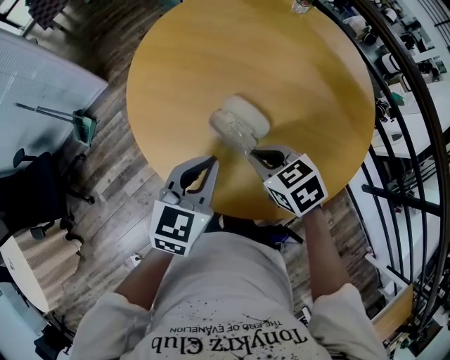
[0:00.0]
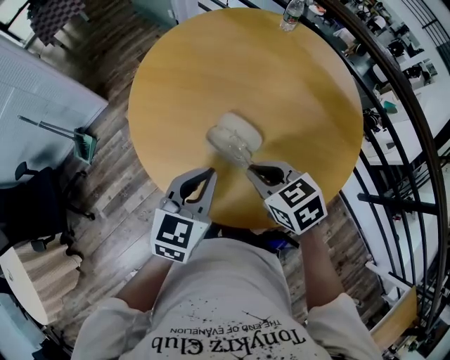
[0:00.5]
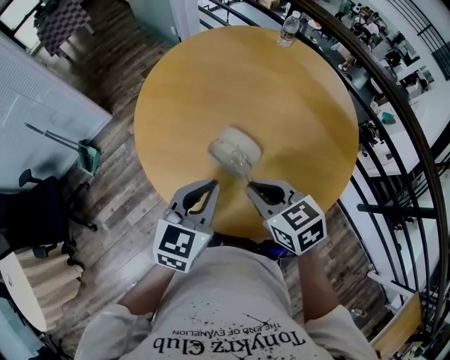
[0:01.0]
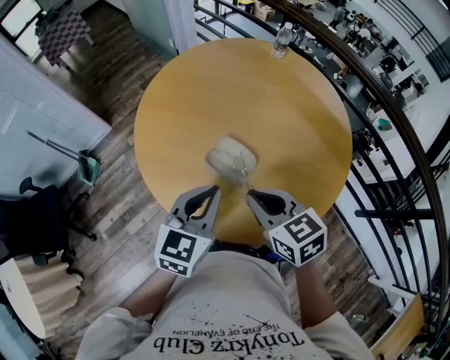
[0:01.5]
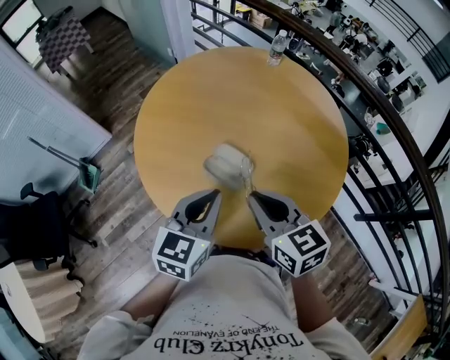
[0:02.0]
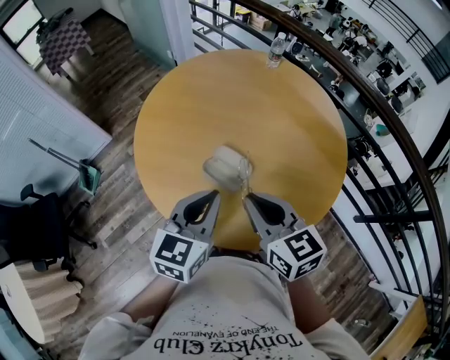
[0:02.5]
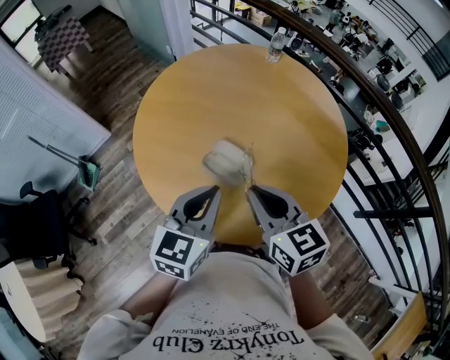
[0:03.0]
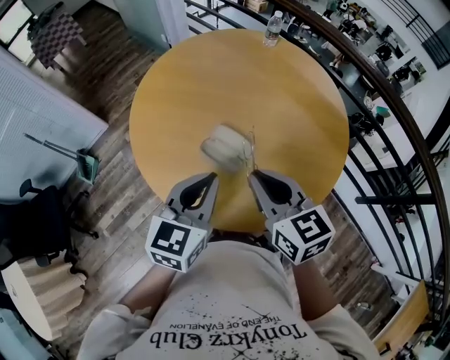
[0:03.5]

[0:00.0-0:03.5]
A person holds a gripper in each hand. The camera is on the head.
0:00.0 to 0:02.0: The right gripper travels upward by about 15 cm, and swivels some 30 degrees, while the left gripper goes some 10 cm upward.
0:02.0 to 0:03.5: Both grippers stay put.

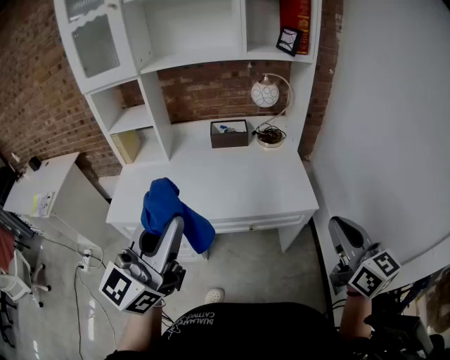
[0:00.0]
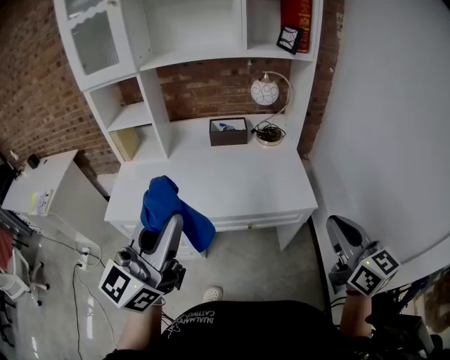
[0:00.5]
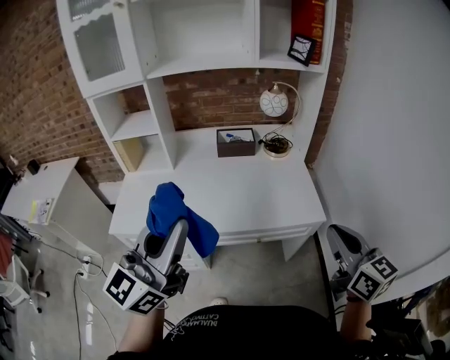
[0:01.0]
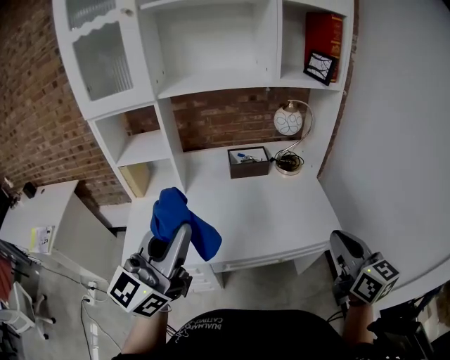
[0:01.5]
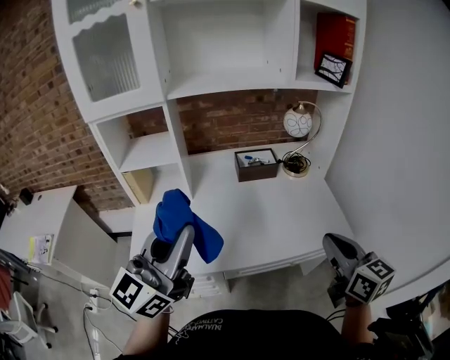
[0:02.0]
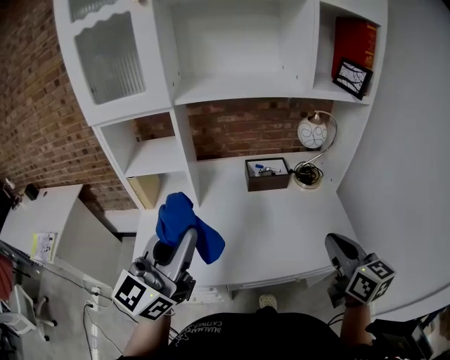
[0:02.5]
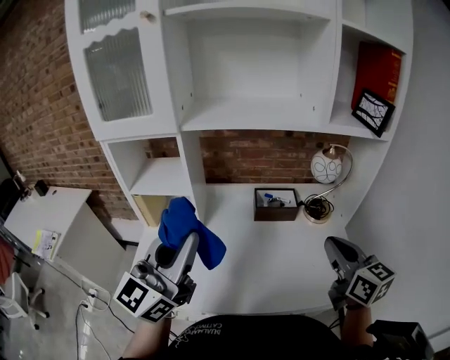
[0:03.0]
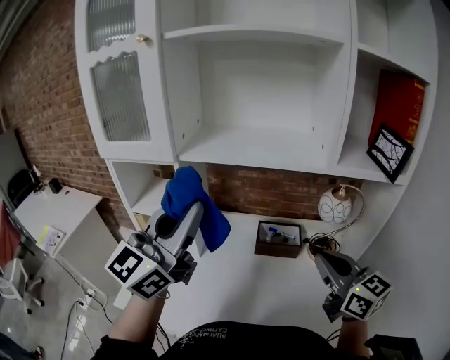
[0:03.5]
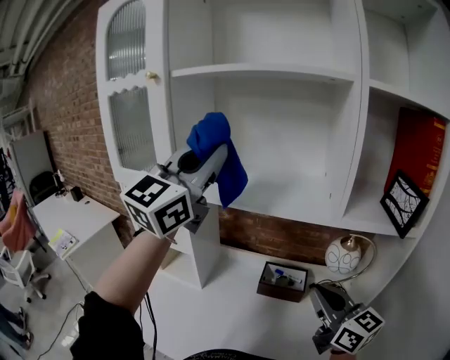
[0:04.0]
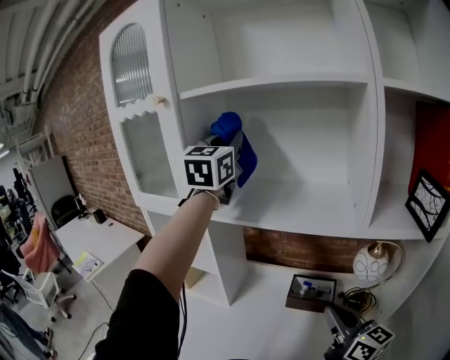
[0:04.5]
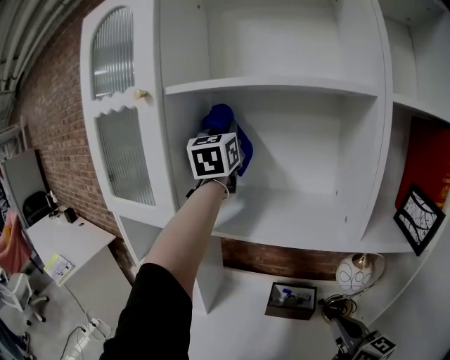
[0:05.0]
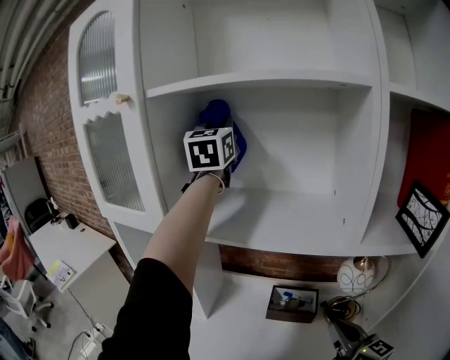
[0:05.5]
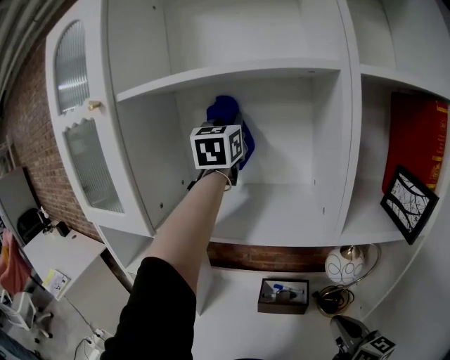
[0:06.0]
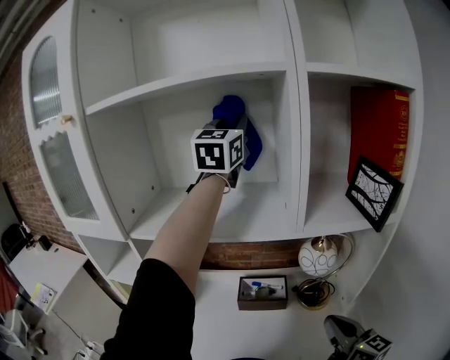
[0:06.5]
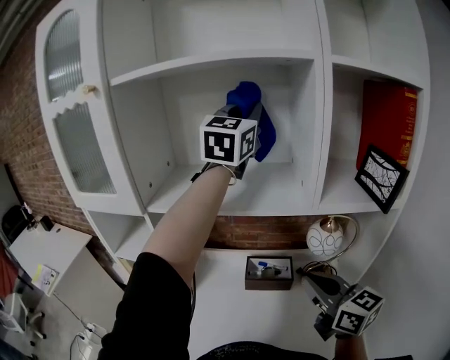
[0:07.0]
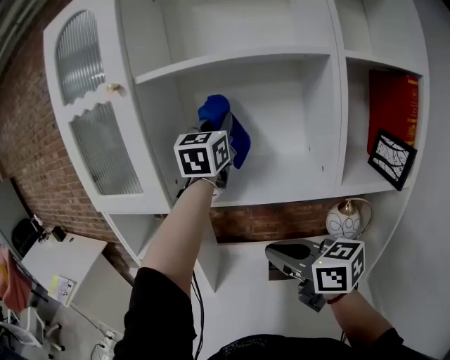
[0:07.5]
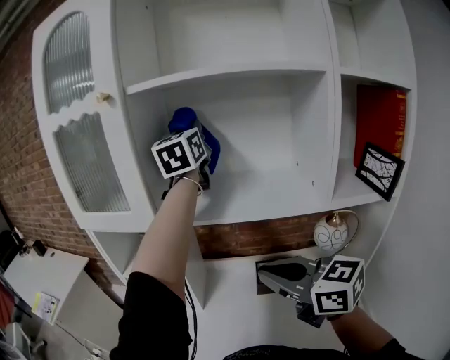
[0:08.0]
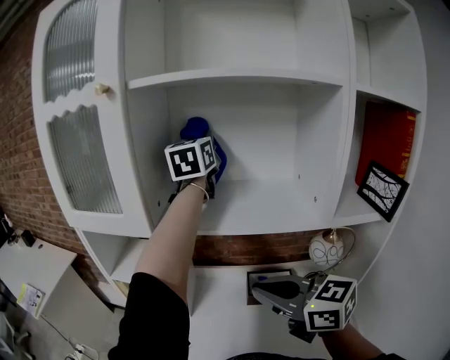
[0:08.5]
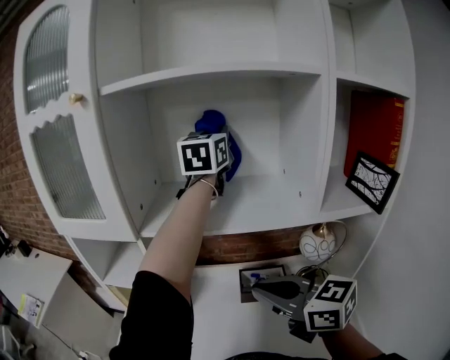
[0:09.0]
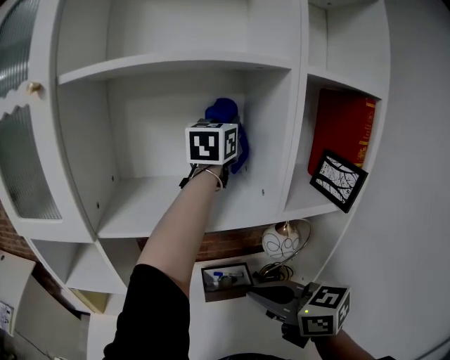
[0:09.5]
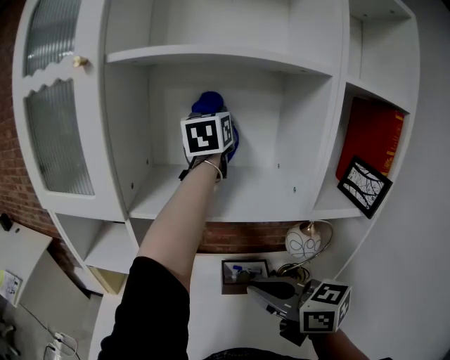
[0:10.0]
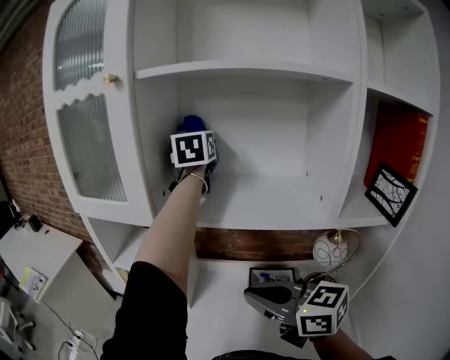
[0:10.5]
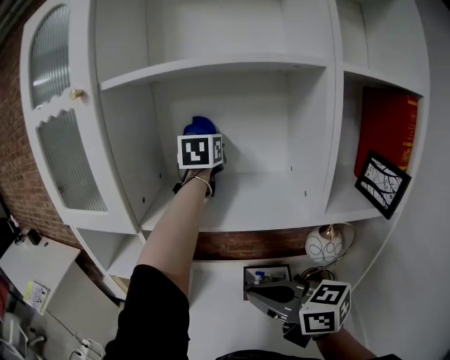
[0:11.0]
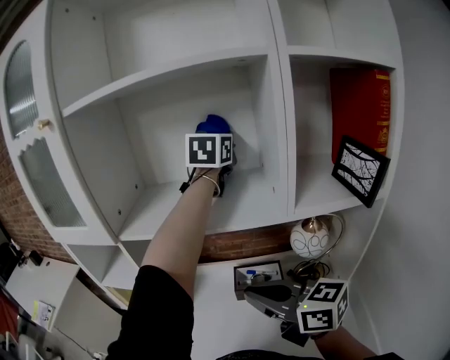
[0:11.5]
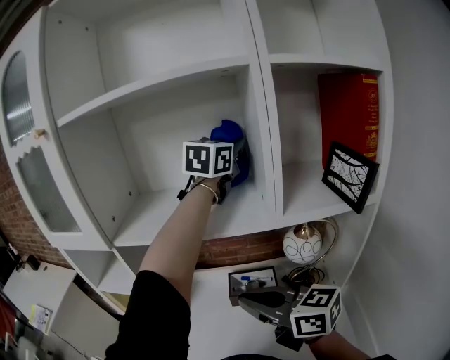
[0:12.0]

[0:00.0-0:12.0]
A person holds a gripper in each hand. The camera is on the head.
0:00.0 to 0:02.0: The two grippers go approximately 25 cm to the left and forward.
0:02.0 to 0:04.0: The right gripper shifts approximately 30 cm forward, and turns by roughly 30 degrees, while the left gripper moves forward and upward, about 40 cm, and swivels some 40 degrees.
0:04.0 to 0:06.0: The left gripper is displaced forward by some 25 cm; the right gripper heads downward and to the right, covering some 10 cm.
0:06.0 to 0:08.0: The left gripper heads to the left, covering some 10 cm. Meanwhile the right gripper is displaced to the left and upward by about 25 cm, and swivels some 30 degrees.
0:08.0 to 0:10.0: The left gripper moves to the right, roughly 10 cm.
0:10.0 to 0:12.0: The left gripper shifts about 15 cm to the right and downward, and turns by roughly 30 degrees.

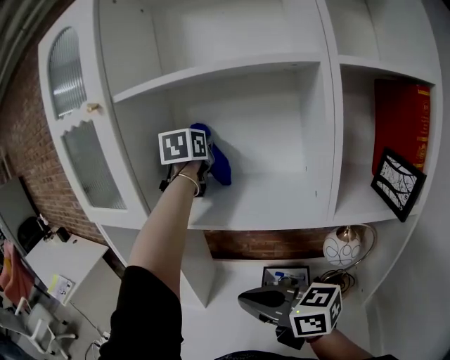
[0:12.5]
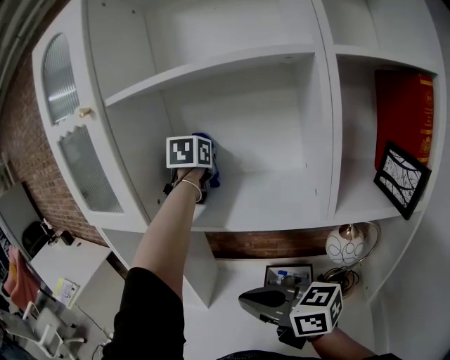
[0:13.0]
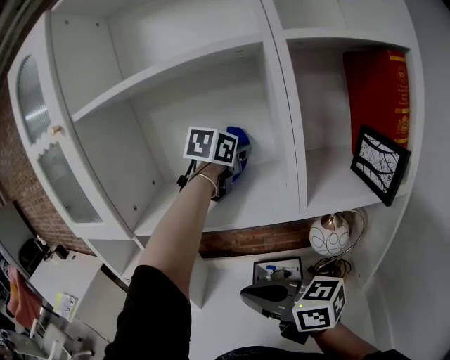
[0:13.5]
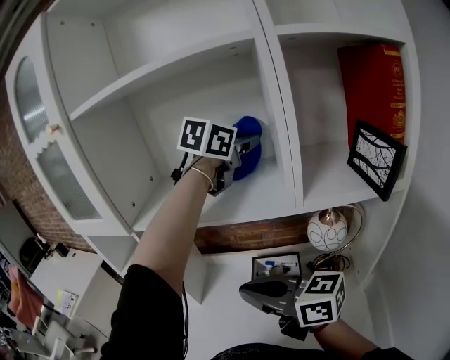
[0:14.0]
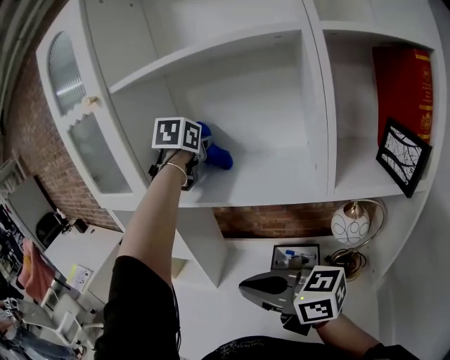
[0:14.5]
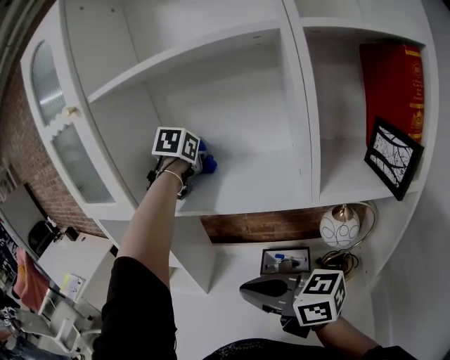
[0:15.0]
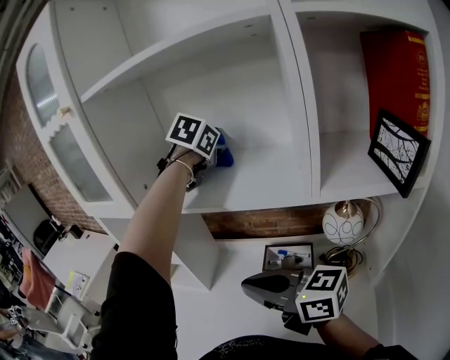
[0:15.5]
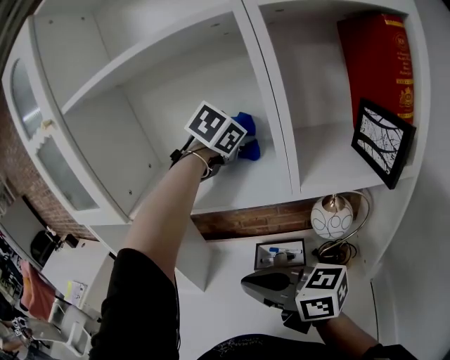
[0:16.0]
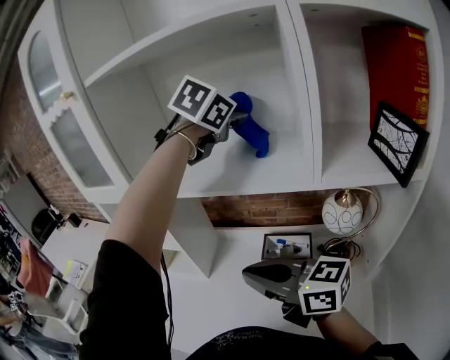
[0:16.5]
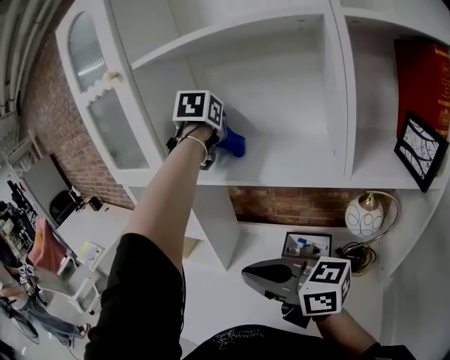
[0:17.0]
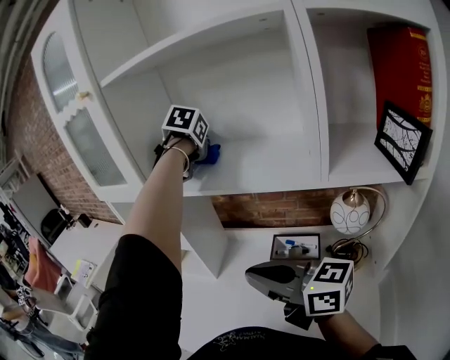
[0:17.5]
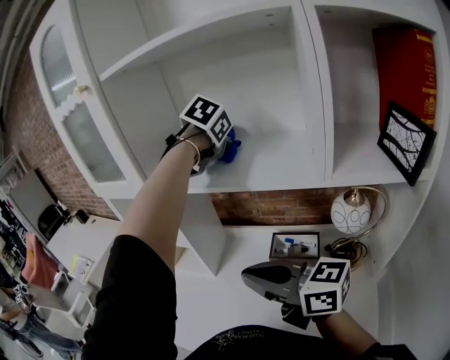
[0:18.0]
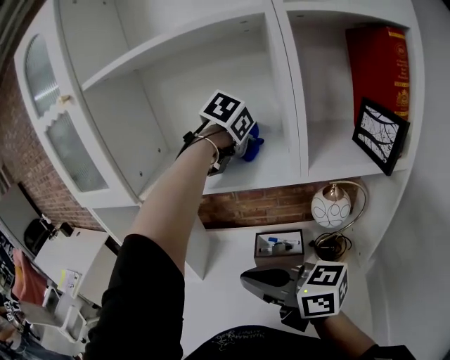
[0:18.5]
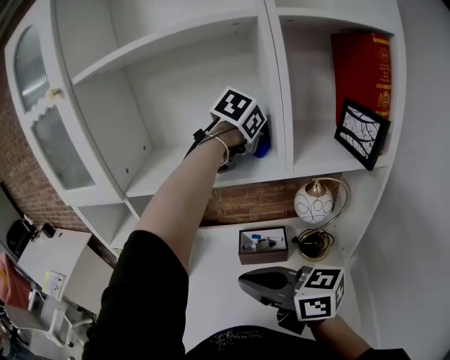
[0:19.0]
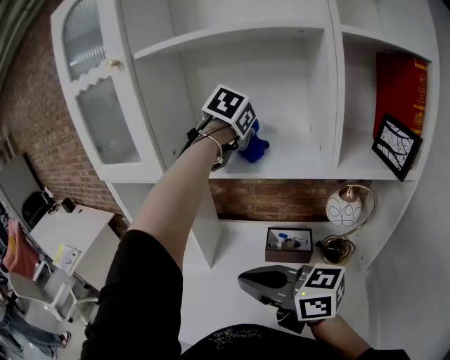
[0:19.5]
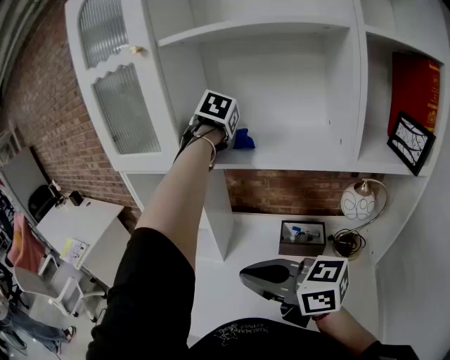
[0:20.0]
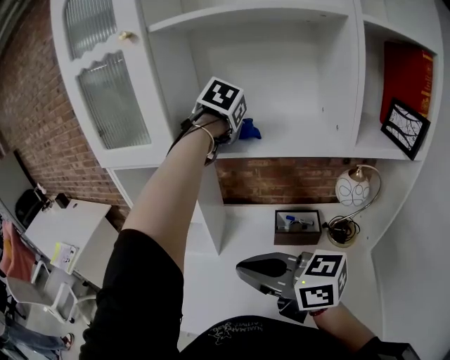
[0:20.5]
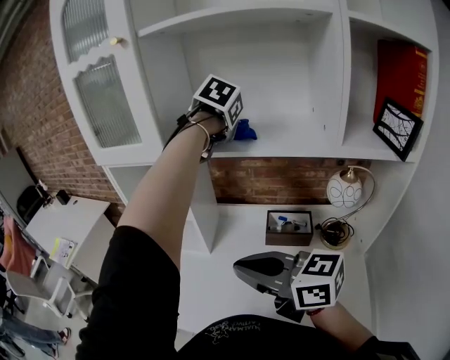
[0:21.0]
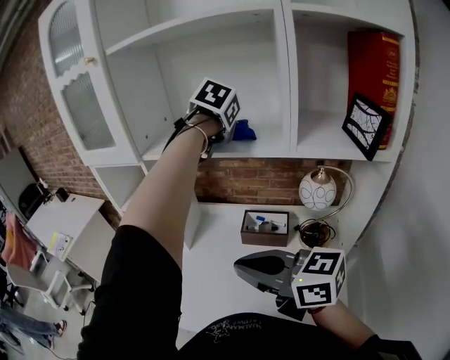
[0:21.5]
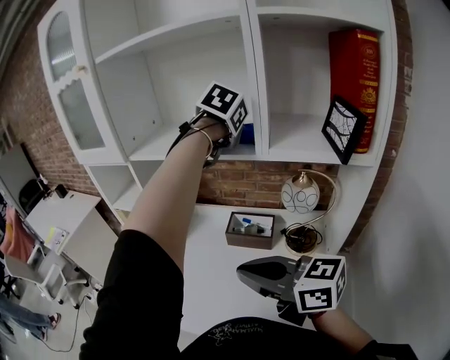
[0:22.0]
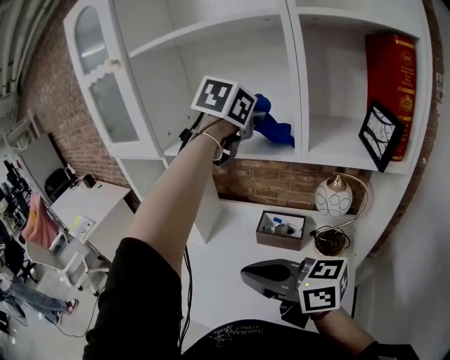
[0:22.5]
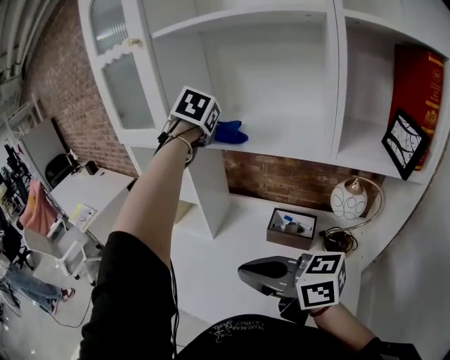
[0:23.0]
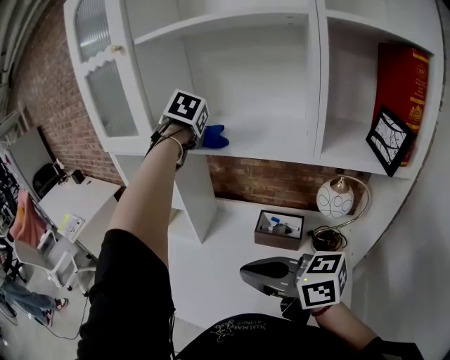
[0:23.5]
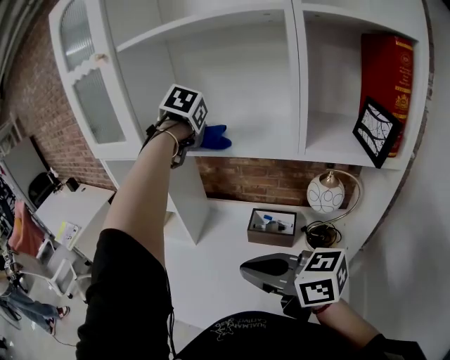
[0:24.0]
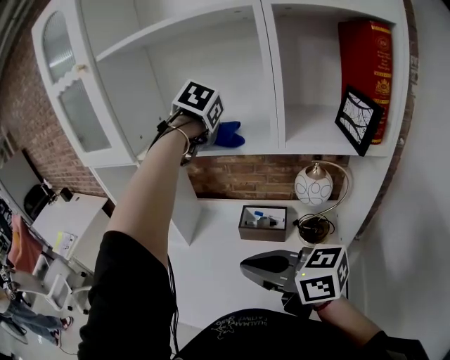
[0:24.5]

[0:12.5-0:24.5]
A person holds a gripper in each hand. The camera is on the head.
0:12.5 to 0:14.5: The left gripper shifts some 5 cm downward, and moves roughly 20 cm to the right and comes back.
0:14.5 to 0:16.5: The left gripper heads to the right and backward, covering roughly 15 cm, and changes its angle by about 30 degrees.
0:16.5 to 0:18.5: The left gripper shifts some 10 cm downward, and goes to the left and returns, about 15 cm each way.
0:18.5 to 0:20.5: The two grippers go some 15 cm to the left.
0:20.5 to 0:22.5: The left gripper shifts about 20 cm backward, to the right and upward. The right gripper heads to the right and backward, covering some 20 cm.
0:22.5 to 0:24.5: The left gripper shifts some 10 cm forward and downward, goes to the left and returns, some 15 cm each way, and changes its angle by approximately 20 degrees.
